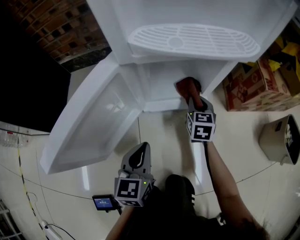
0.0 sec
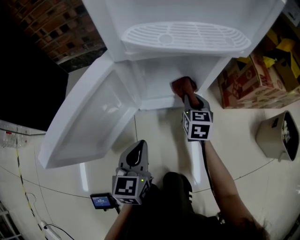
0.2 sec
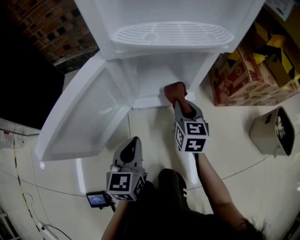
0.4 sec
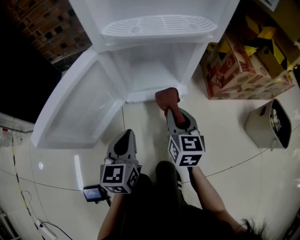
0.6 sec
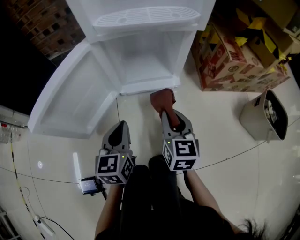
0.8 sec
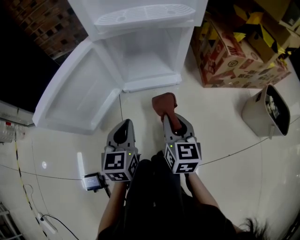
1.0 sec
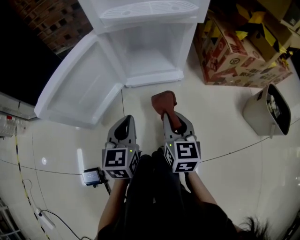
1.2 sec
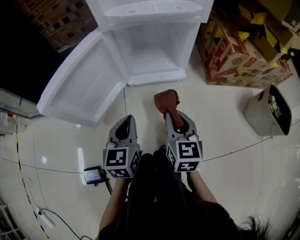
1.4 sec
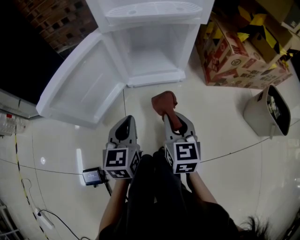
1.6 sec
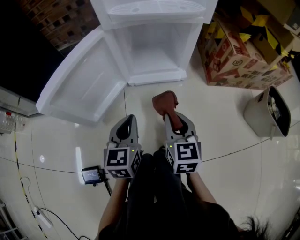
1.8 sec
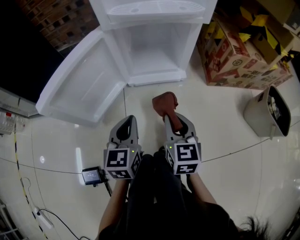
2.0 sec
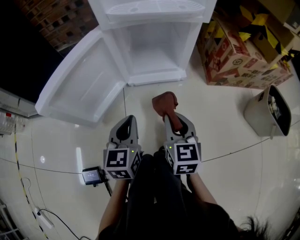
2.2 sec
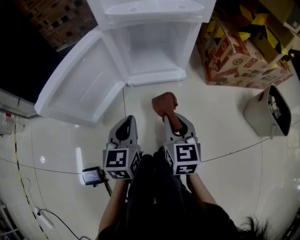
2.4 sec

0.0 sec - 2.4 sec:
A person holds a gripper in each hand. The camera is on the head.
0.0 sec - 1.2 sec: The right gripper heads backward and upward, covering roughly 25 cm; the left gripper moves backward, about 5 cm.
1.2 sec - 2.4 sec: The grippers stay close to where they were, moving slightly.

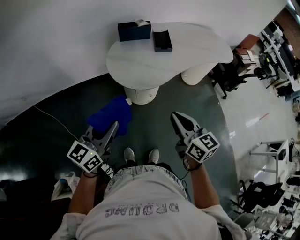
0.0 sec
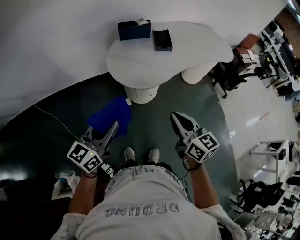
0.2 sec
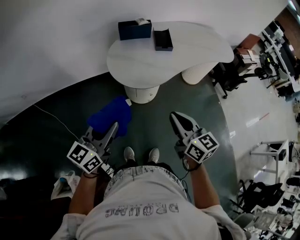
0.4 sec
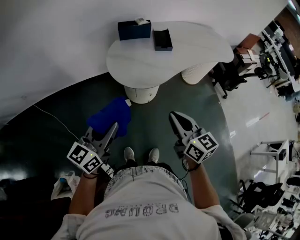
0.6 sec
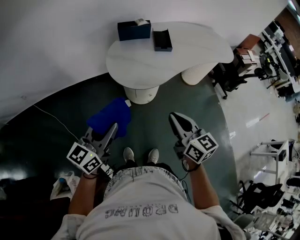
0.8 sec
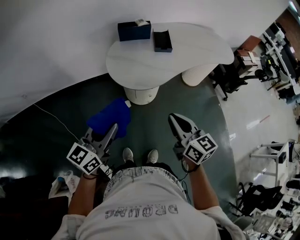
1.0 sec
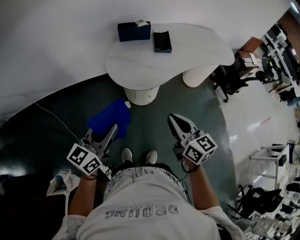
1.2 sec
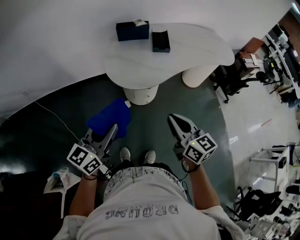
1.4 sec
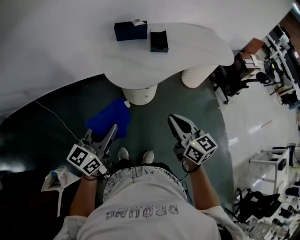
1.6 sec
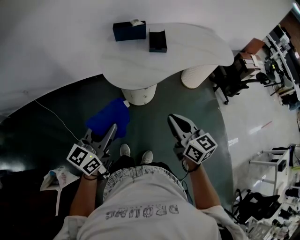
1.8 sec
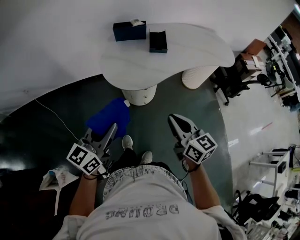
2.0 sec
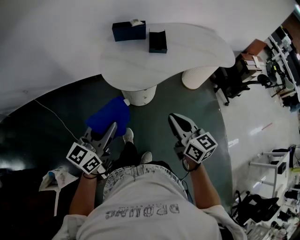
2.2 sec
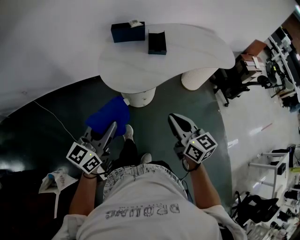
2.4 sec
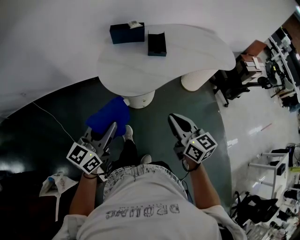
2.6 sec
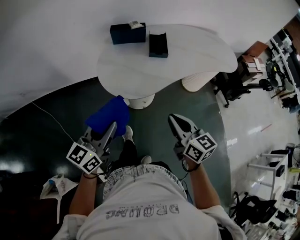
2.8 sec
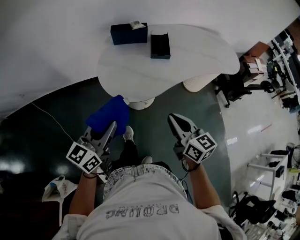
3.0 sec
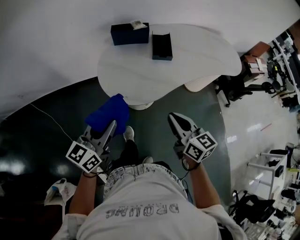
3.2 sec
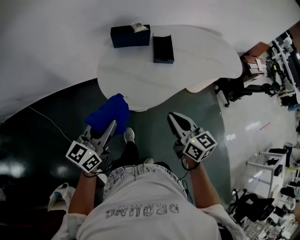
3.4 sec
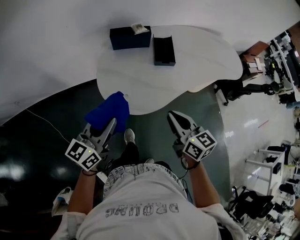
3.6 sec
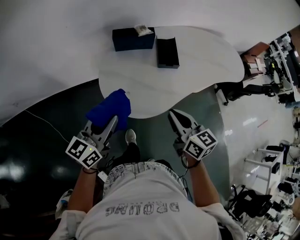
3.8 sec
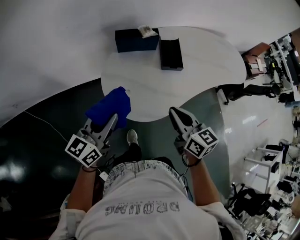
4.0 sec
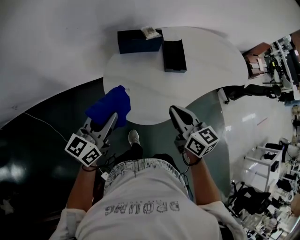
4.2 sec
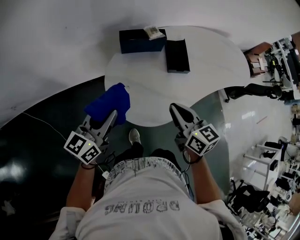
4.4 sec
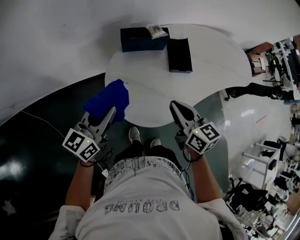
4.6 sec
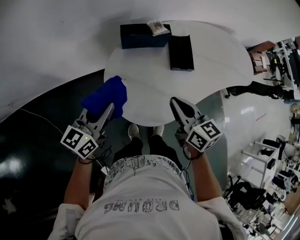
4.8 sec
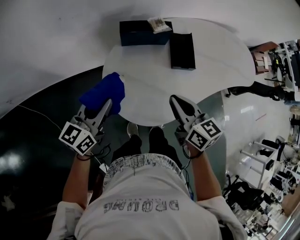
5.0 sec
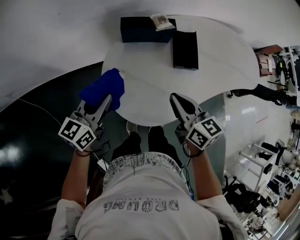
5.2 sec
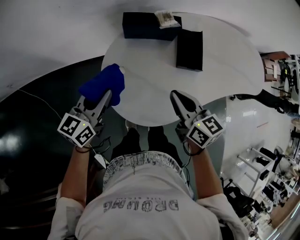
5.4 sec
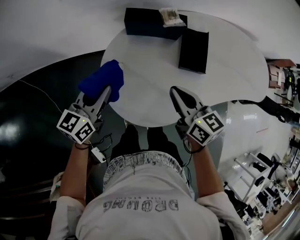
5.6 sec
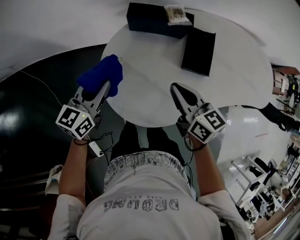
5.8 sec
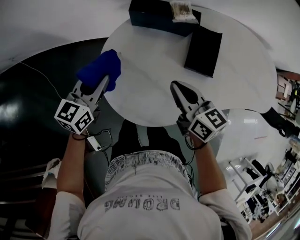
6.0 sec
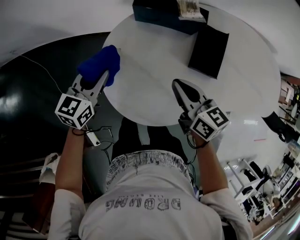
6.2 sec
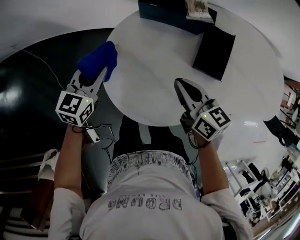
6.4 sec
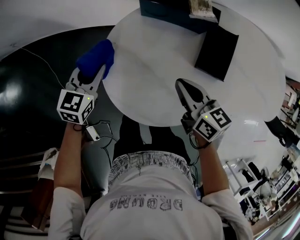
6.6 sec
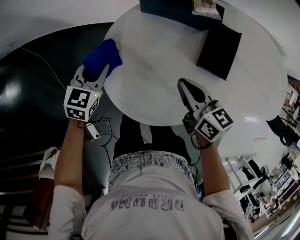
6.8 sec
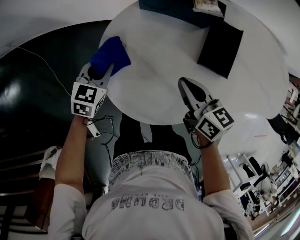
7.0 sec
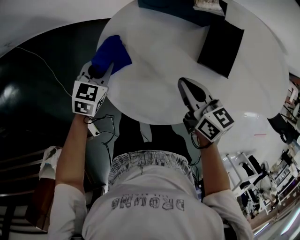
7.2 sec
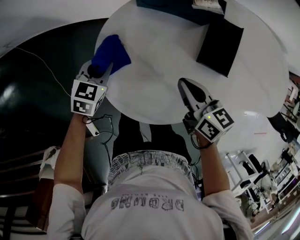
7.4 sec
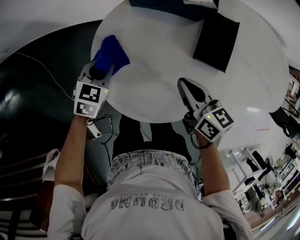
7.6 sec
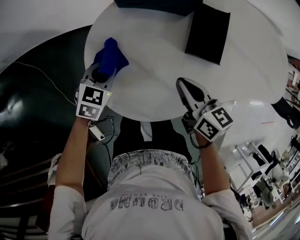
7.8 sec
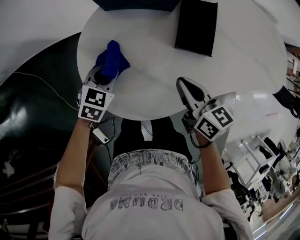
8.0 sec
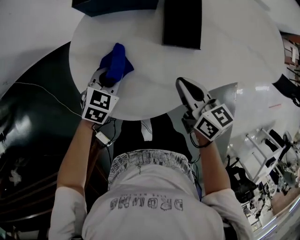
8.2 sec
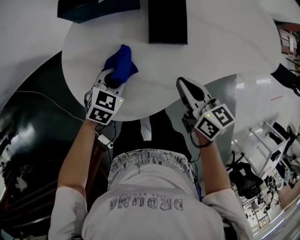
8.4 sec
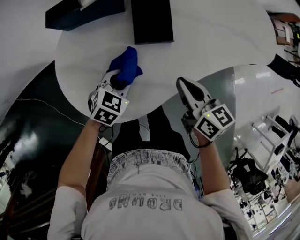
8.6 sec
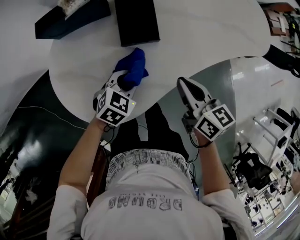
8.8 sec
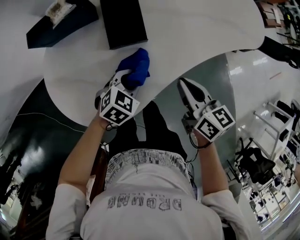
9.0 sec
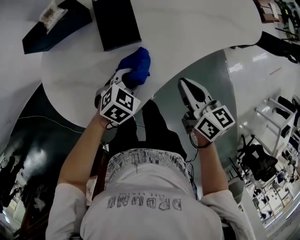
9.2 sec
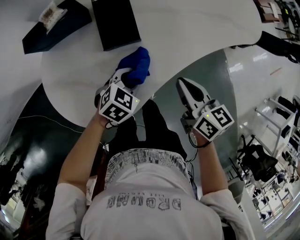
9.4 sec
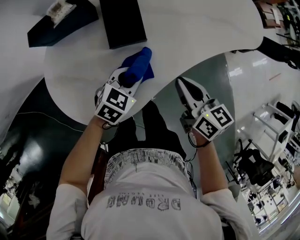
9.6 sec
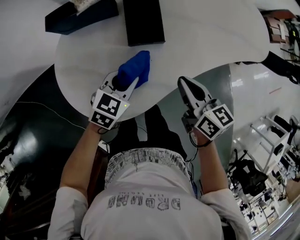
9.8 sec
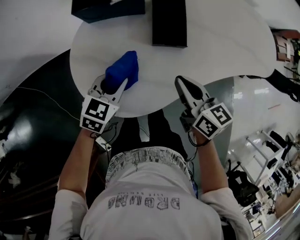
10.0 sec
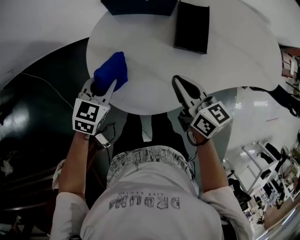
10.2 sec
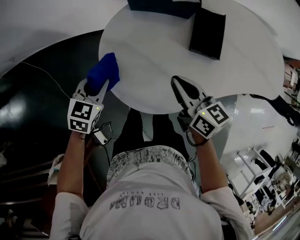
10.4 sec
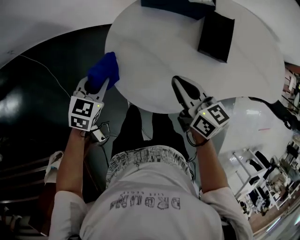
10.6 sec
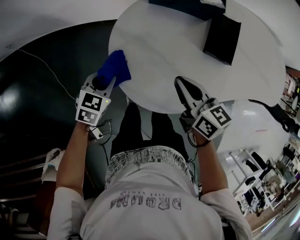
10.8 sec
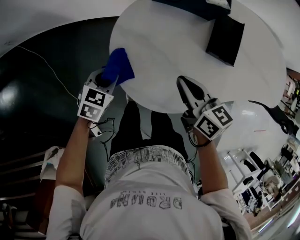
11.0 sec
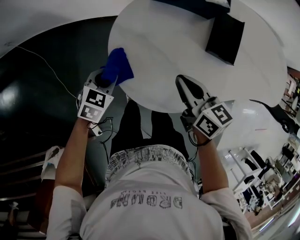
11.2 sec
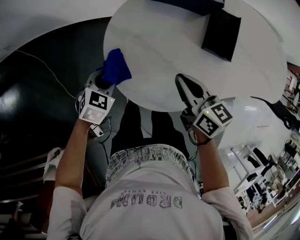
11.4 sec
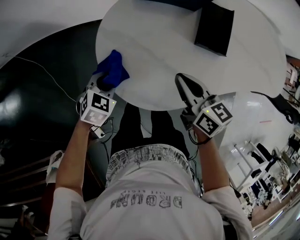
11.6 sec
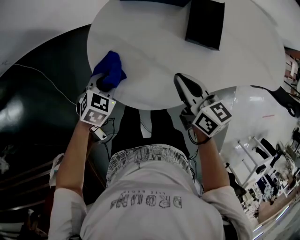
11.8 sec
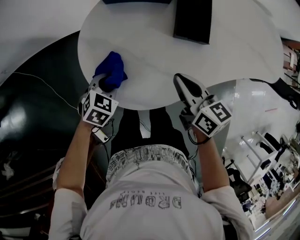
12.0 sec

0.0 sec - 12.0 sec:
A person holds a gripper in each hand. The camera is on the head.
0.0 sec - 1.6 sec: The grippers both shift to the right by some 5 cm.
1.6 sec - 3.0 sec: Both grippers travel together forward, roughly 10 cm.
3.0 sec - 4.4 sec: Both grippers move forward and to the left, some 25 cm.
4.4 sec - 6.0 sec: The right gripper shifts some 15 cm forward and downward, and turns by roughly 20 degrees. Meanwhile the left gripper travels downward and forward by approximately 15 cm, and swivels roughly 20 degrees.
6.0 sec - 7.6 sec: The right gripper moves downward, roughly 5 cm. The left gripper shifts approximately 15 cm downward, and turns by approximately 30 degrees.
7.6 sec - 9.0 sec: The left gripper moves roughly 35 cm, and changes its angle by some 40 degrees. Meanwhile the right gripper changes place by roughly 25 cm, and swivels some 30 degrees.
9.0 sec - 10.4 sec: The left gripper changes place by about 35 cm, and changes its angle by approximately 40 degrees. Meanwhile the right gripper shifts by some 25 cm, and swivels about 30 degrees.
10.4 sec - 12.0 sec: The right gripper shifts approximately 5 cm to the right. Meanwhile the left gripper shifts approximately 10 cm to the right and downward, and changes its angle by approximately 20 degrees.

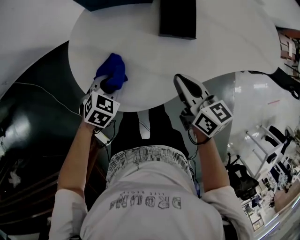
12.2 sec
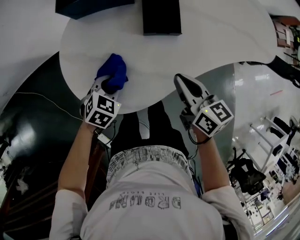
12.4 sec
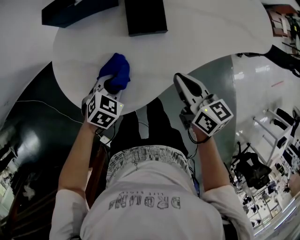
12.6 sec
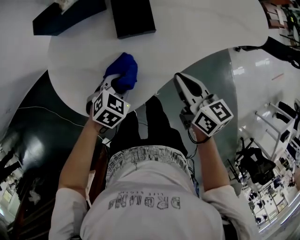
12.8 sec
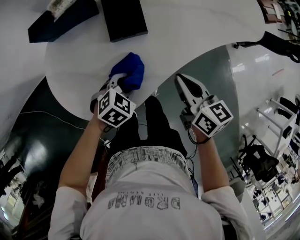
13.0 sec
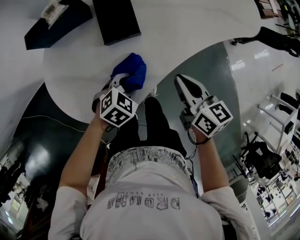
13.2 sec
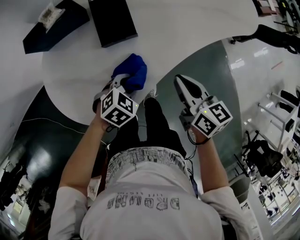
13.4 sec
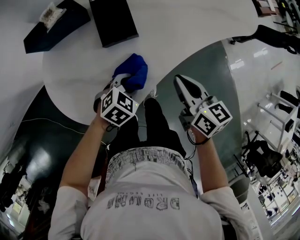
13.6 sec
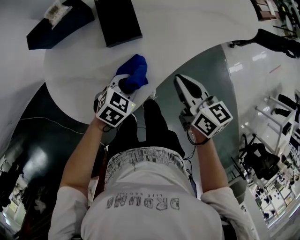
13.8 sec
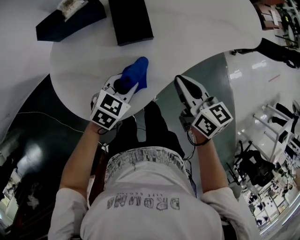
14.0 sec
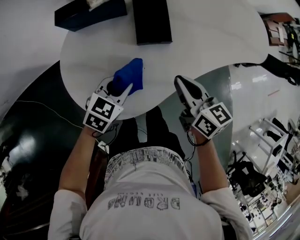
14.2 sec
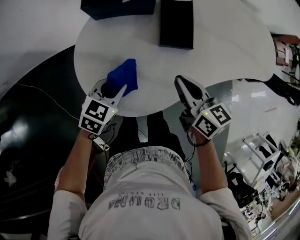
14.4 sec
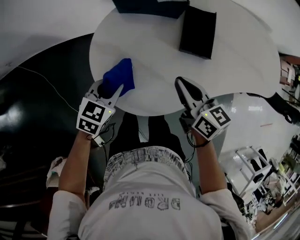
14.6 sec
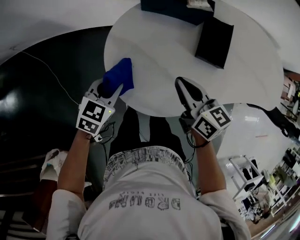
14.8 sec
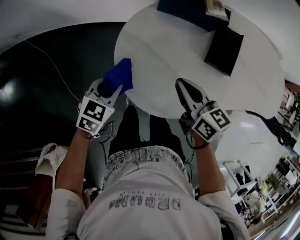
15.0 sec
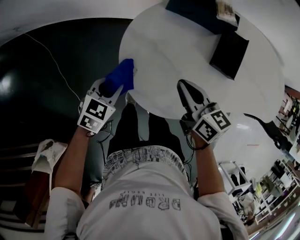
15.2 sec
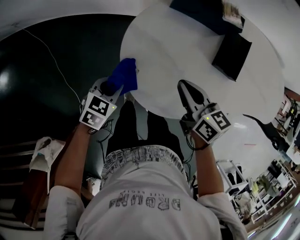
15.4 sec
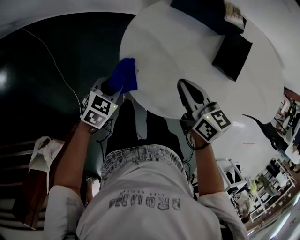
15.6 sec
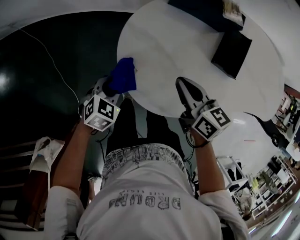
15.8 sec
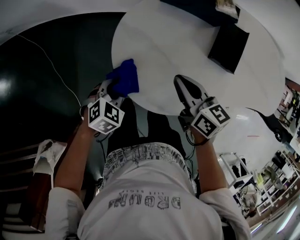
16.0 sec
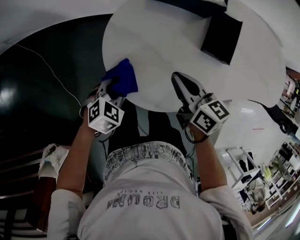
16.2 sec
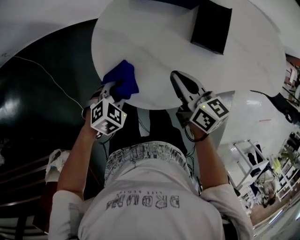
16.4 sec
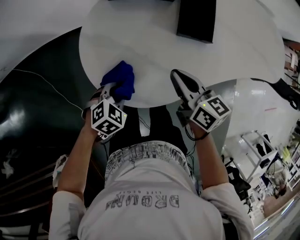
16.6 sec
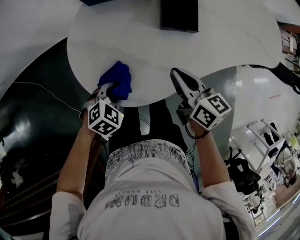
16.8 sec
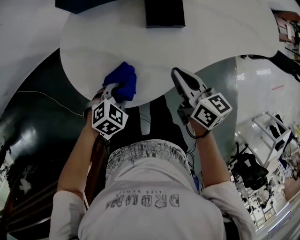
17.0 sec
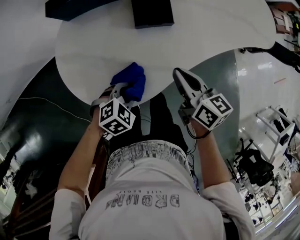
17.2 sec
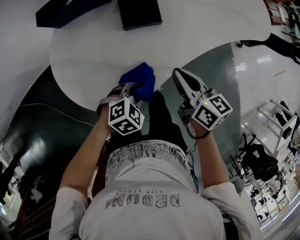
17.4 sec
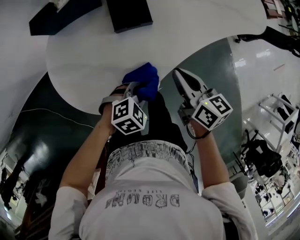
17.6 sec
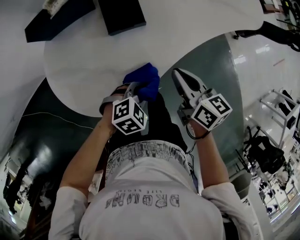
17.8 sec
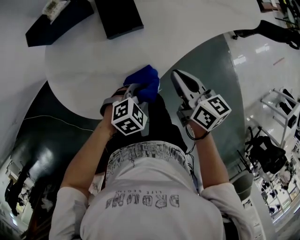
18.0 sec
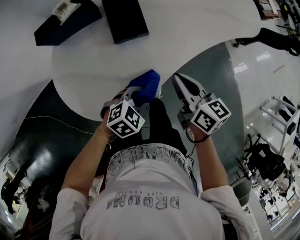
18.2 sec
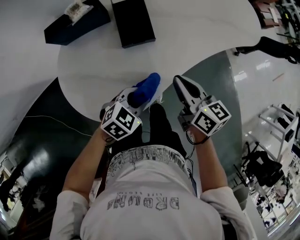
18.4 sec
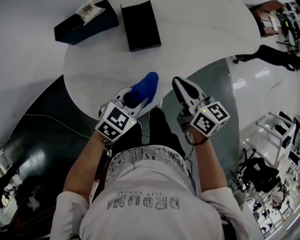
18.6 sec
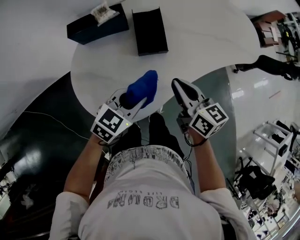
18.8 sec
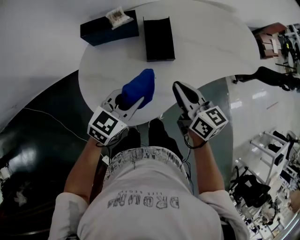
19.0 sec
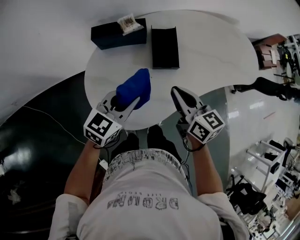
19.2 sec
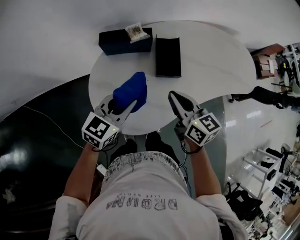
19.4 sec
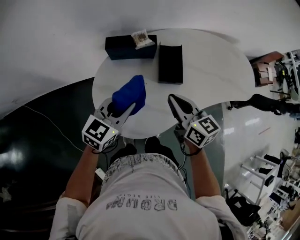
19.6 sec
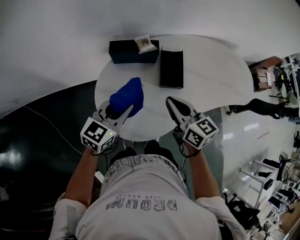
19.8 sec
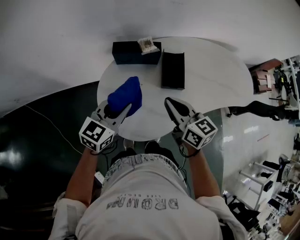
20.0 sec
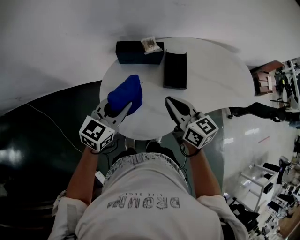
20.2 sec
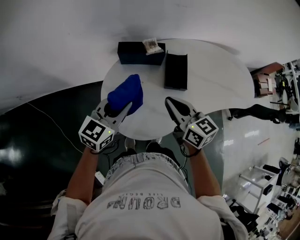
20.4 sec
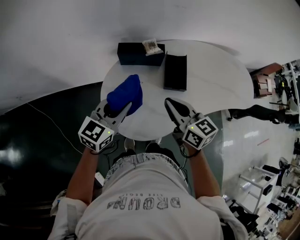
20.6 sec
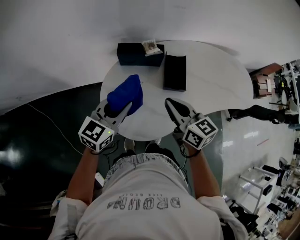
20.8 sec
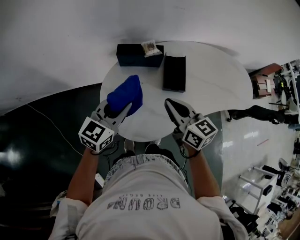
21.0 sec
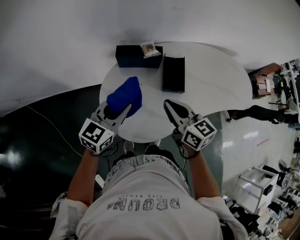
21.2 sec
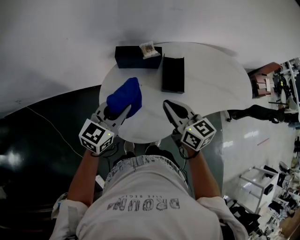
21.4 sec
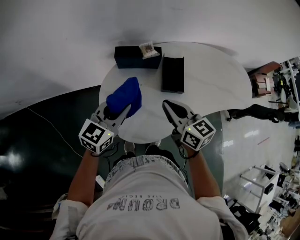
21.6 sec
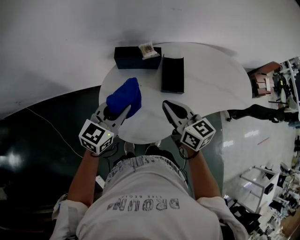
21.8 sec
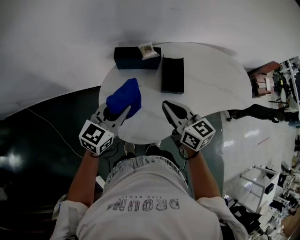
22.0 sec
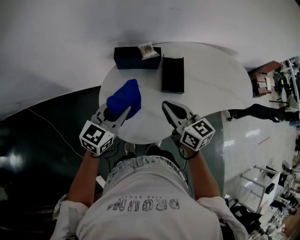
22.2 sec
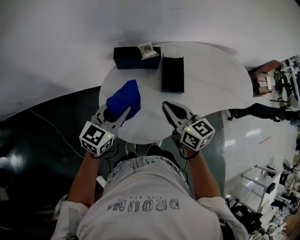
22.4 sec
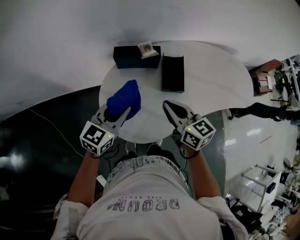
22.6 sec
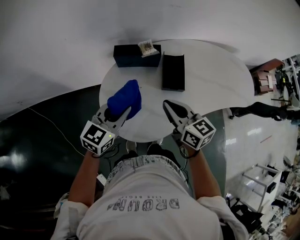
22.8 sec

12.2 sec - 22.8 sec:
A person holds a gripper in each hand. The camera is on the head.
12.2 sec - 13.8 sec: Both grippers move to the right, about 20 cm. The left gripper swivels about 20 degrees.
13.8 sec - 15.2 sec: The right gripper ends up about 30 cm from where it was, and swivels about 30 degrees, while the left gripper shifts by roughly 35 cm, and swivels about 40 degrees.
15.2 sec - 16.8 sec: The two grippers go approximately 15 cm to the right. The right gripper swivels roughly 20 degrees; the left gripper rotates approximately 40 degrees.
16.8 sec - 18.2 sec: The grippers both shift to the right by approximately 15 cm. The left gripper rotates approximately 20 degrees.
18.2 sec - 19.8 sec: The left gripper goes roughly 25 cm upward, and tips its fingers upward by roughly 30 degrees; the right gripper changes place by some 25 cm, and swivels roughly 30 degrees.
19.8 sec - 22.8 sec: The grippers move only a little.
